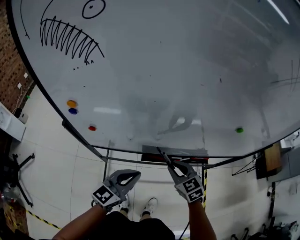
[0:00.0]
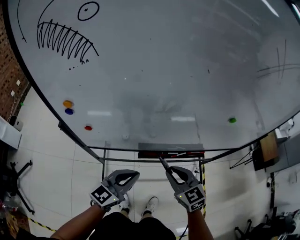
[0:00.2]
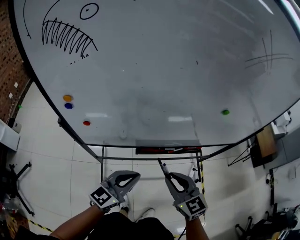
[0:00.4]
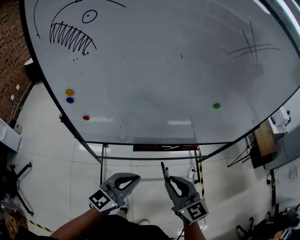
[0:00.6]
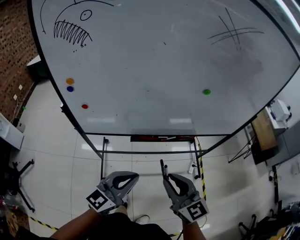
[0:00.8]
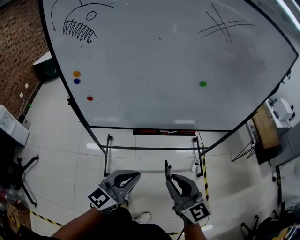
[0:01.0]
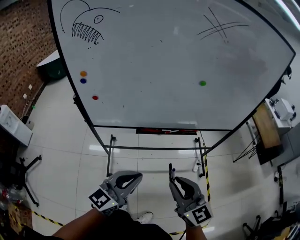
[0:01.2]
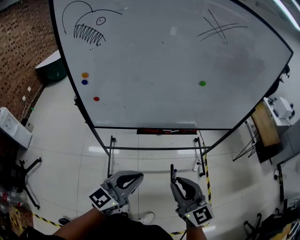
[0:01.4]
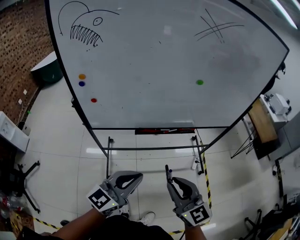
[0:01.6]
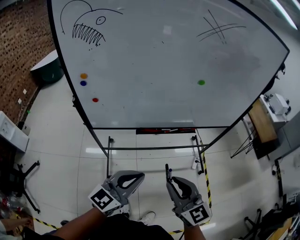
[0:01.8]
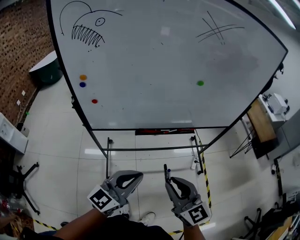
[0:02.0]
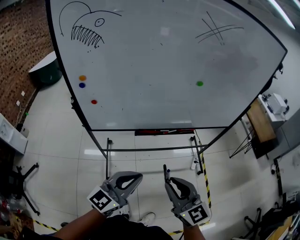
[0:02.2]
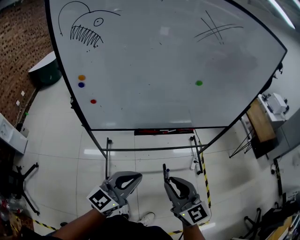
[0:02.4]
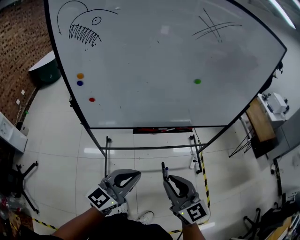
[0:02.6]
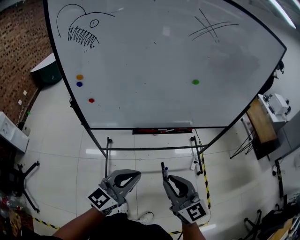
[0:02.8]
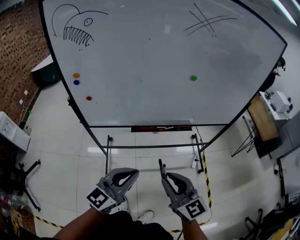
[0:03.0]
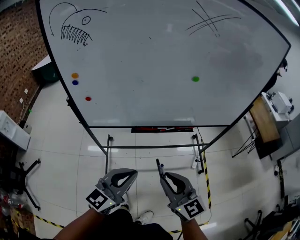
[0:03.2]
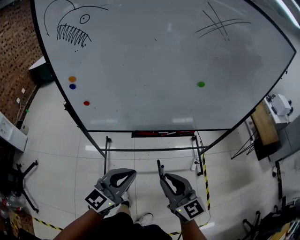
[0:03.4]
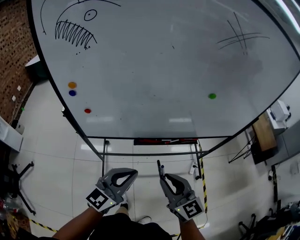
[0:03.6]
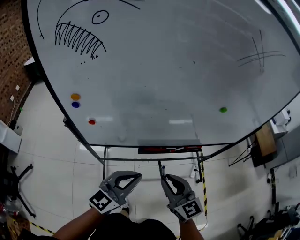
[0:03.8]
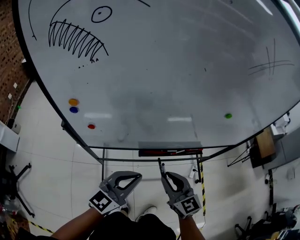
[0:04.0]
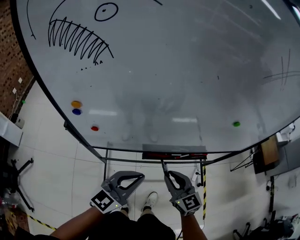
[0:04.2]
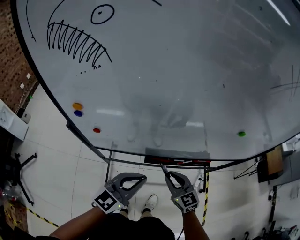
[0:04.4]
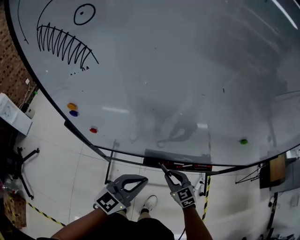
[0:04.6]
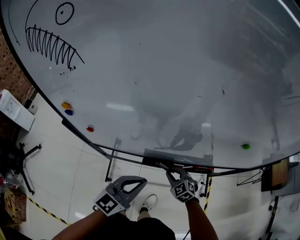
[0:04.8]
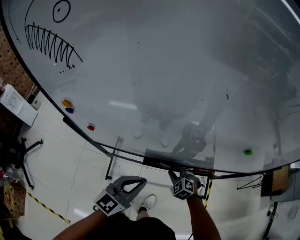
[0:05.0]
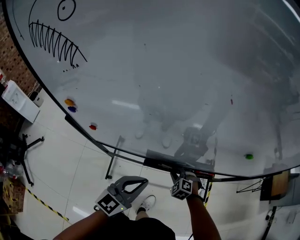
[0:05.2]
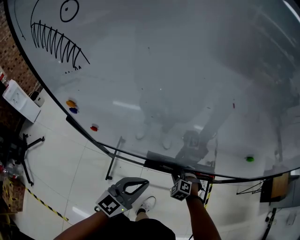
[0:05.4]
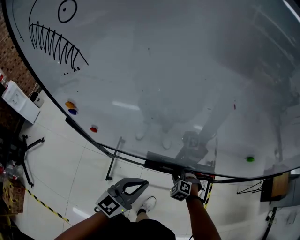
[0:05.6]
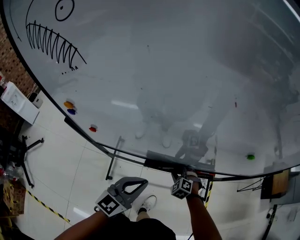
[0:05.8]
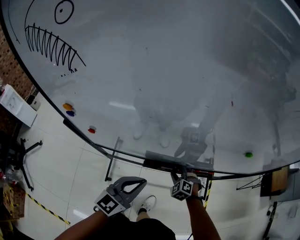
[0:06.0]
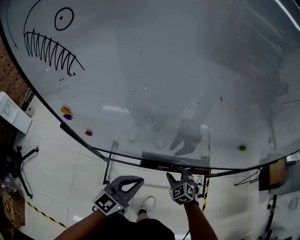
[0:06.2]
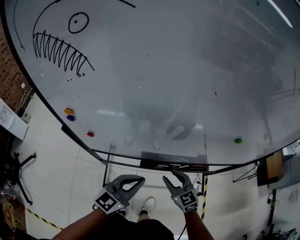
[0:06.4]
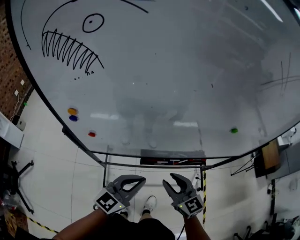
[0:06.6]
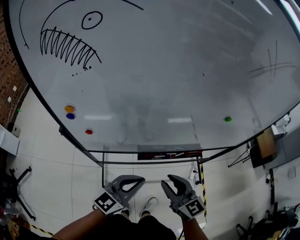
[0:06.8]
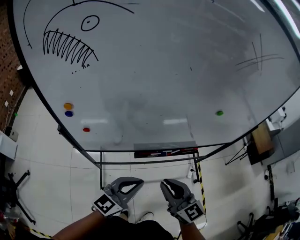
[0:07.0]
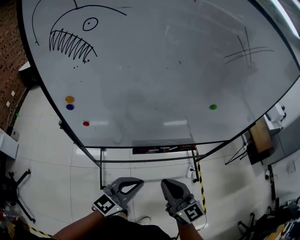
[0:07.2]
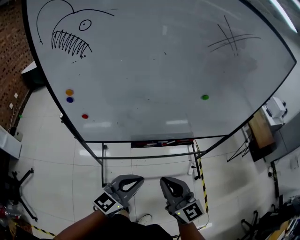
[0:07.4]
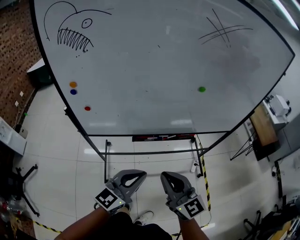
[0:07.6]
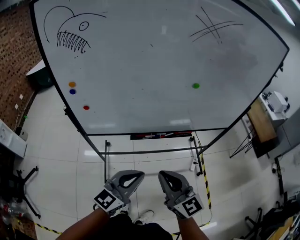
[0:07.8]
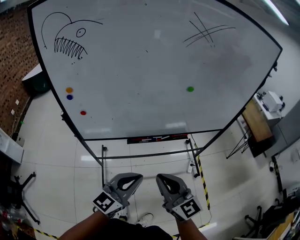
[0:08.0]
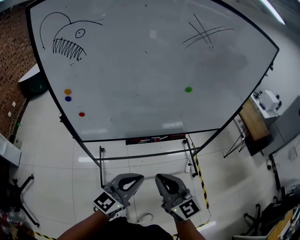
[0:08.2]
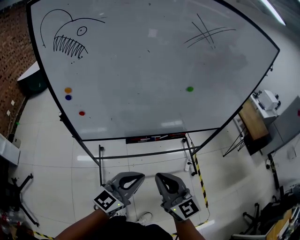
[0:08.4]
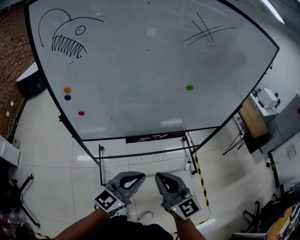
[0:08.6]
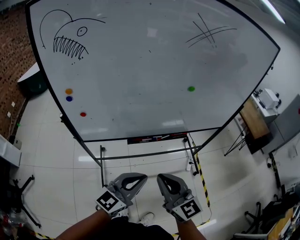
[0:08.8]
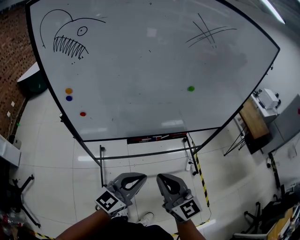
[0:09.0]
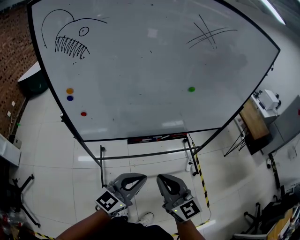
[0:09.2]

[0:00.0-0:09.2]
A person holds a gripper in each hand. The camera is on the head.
0:00.0 to 0:01.6: Both grippers move backward and upward, approximately 30 cm. The right gripper tips its fingers upward by approximately 30 degrees.
0:01.6 to 0:03.0: The grippers stay close to where they were, moving slightly.
0:03.0 to 0:04.6: The right gripper heads forward and downward, covering approximately 40 cm, and changes its angle by roughly 30 degrees. The left gripper goes approximately 25 cm forward.
0:04.6 to 0:06.2: The right gripper reaches some 10 cm downward, then returns, swivels roughly 20 degrees, and opens its fingers.
0:06.2 to 0:07.6: The right gripper is displaced backward and upward by about 40 cm, points its fingers approximately 40 degrees further upward, and closes its fingers, while the left gripper goes about 20 cm backward.
0:07.6 to 0:09.2: The grippers move only a little.

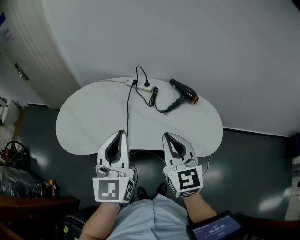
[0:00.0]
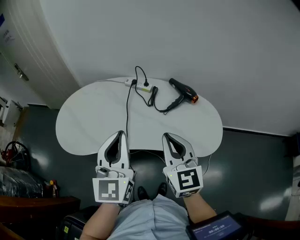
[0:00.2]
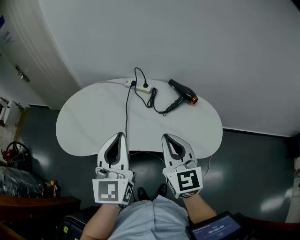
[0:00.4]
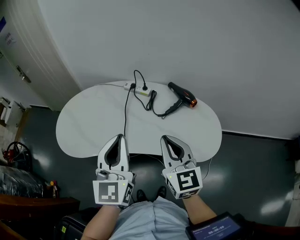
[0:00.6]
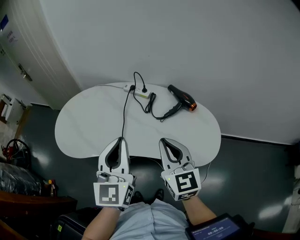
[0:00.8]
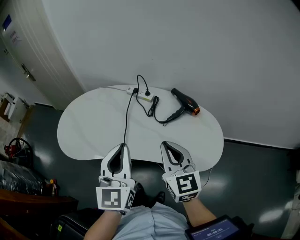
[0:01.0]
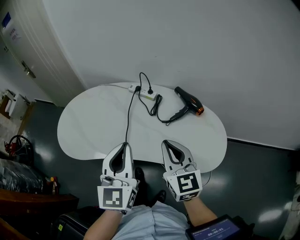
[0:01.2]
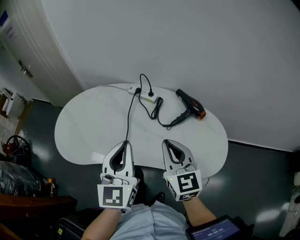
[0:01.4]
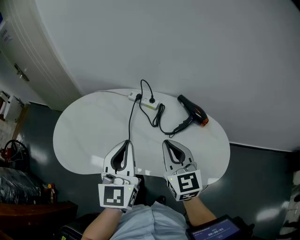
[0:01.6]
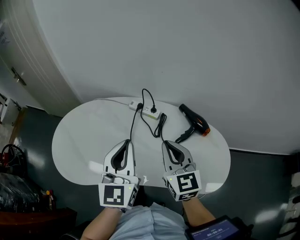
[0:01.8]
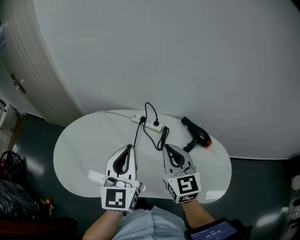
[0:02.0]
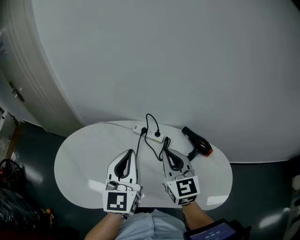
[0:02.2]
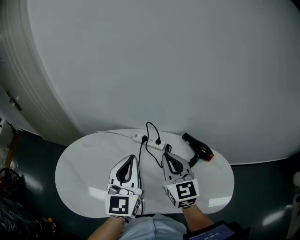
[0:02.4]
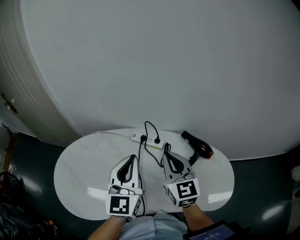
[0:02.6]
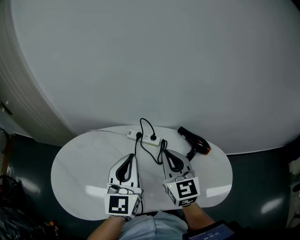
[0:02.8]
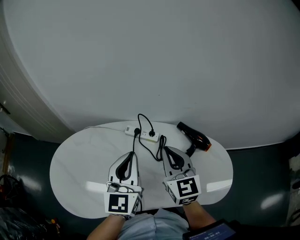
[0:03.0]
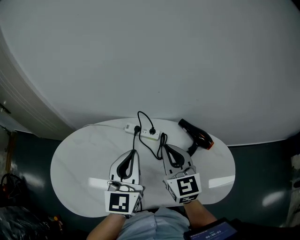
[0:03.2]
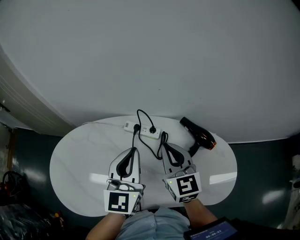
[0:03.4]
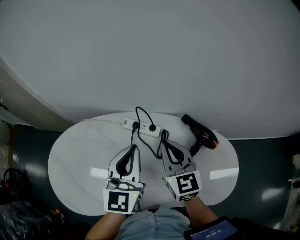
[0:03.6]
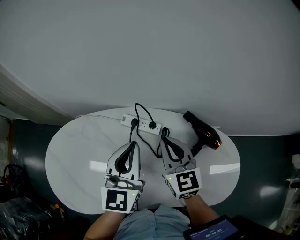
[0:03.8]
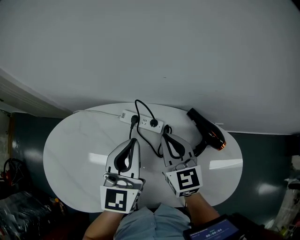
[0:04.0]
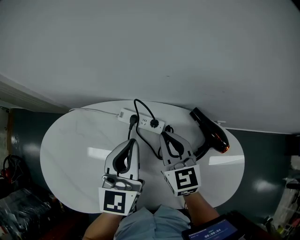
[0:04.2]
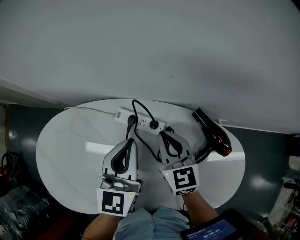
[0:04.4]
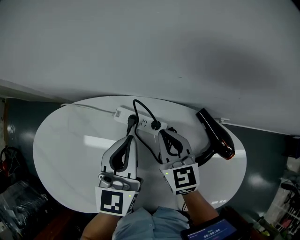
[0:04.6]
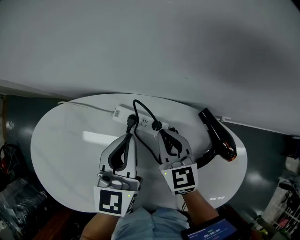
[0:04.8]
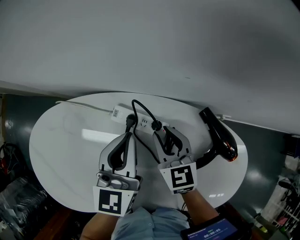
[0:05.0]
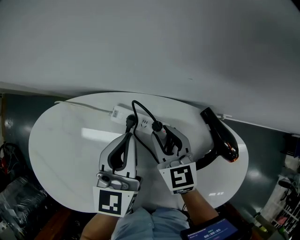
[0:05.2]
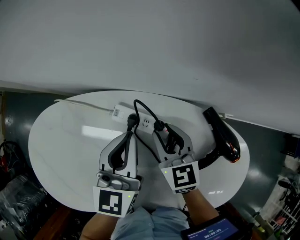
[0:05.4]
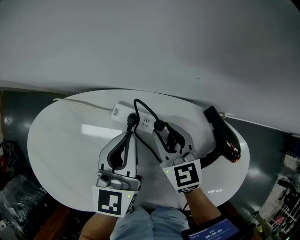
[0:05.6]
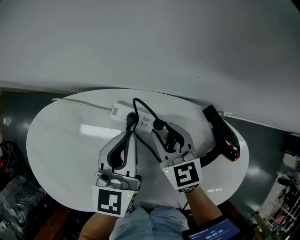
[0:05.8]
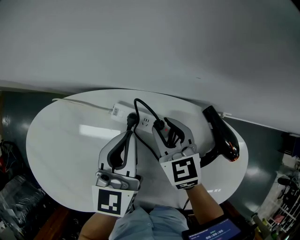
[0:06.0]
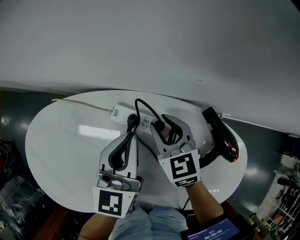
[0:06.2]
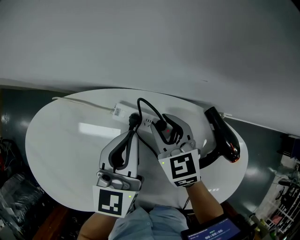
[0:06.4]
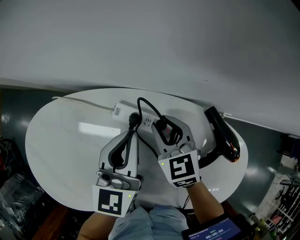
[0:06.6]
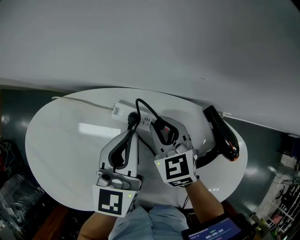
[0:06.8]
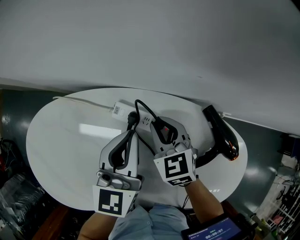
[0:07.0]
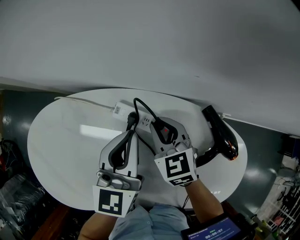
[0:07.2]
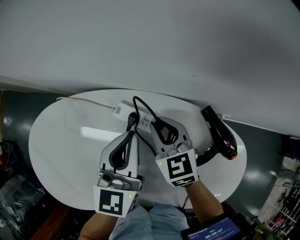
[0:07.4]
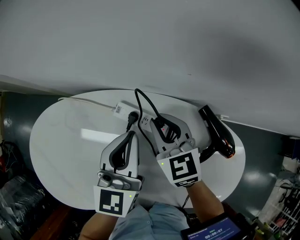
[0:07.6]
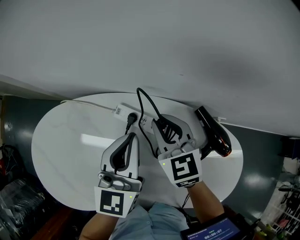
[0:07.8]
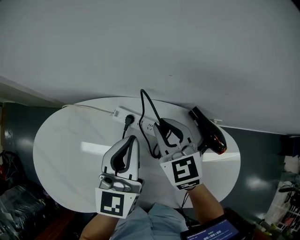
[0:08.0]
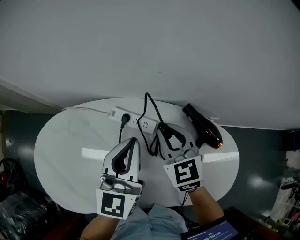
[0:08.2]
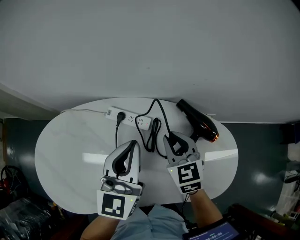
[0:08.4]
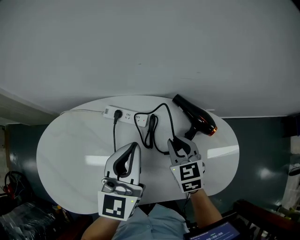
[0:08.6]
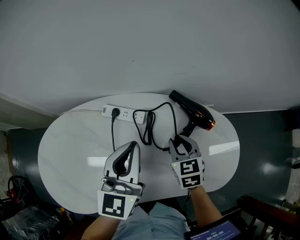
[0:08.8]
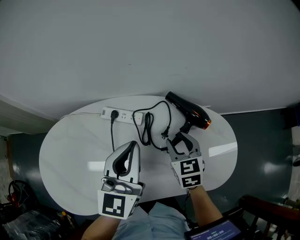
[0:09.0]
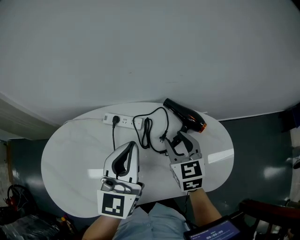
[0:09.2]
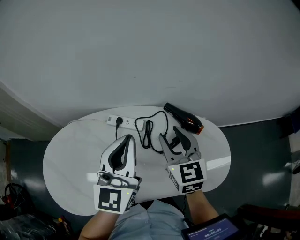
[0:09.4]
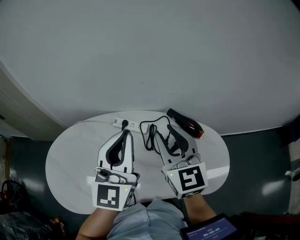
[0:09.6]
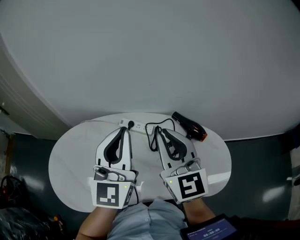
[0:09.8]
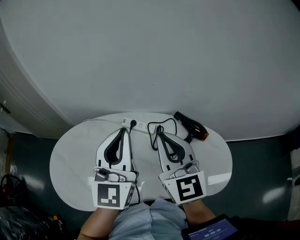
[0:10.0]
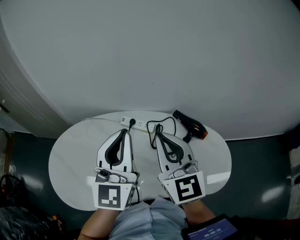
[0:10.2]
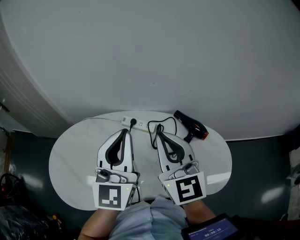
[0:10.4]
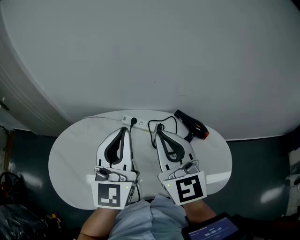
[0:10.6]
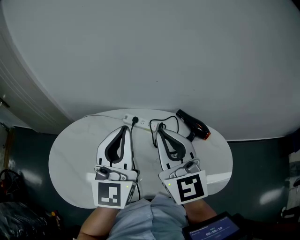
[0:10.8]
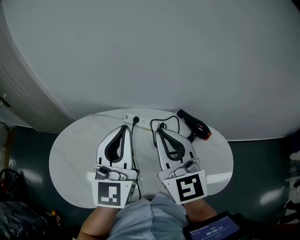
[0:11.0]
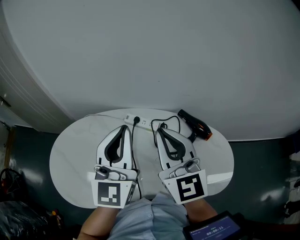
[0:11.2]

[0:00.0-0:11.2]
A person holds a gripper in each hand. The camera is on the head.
0:00.0 to 0:01.6: Both grippers travel together forward, roughly 10 cm.
0:01.6 to 0:03.2: Both grippers travel together forward, some 15 cm.
0:03.2 to 0:04.8: The left gripper shifts about 20 cm forward and downward, and changes its angle by approximately 20 degrees; the right gripper is displaced downward and forward by approximately 20 cm.
0:04.8 to 0:06.4: The right gripper opens.
0:06.4 to 0:08.0: The two grippers go about 10 cm upward.
0:08.0 to 0:09.6: The grippers both shift upward and backward by about 20 cm. The right gripper rotates roughly 30 degrees. Meanwhile the left gripper turns by about 30 degrees.
0:09.6 to 0:11.2: The right gripper heads to the left and upward, covering roughly 10 cm, and closes up. The left gripper heads to the left, covering some 5 cm.

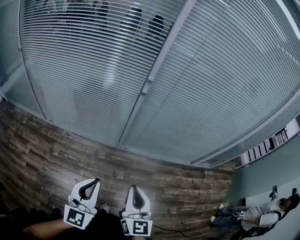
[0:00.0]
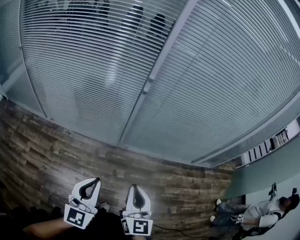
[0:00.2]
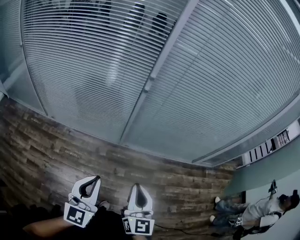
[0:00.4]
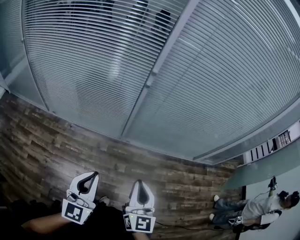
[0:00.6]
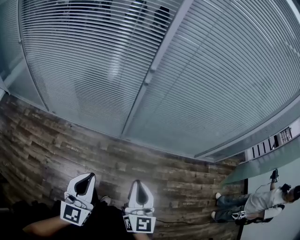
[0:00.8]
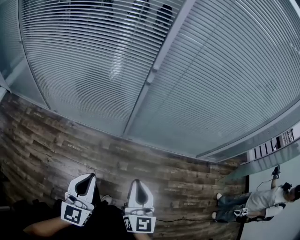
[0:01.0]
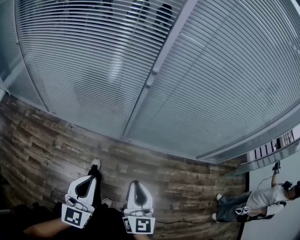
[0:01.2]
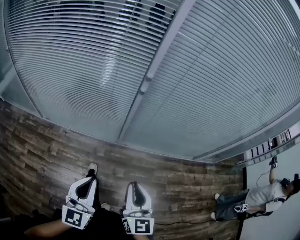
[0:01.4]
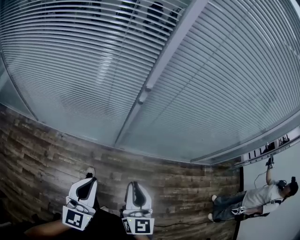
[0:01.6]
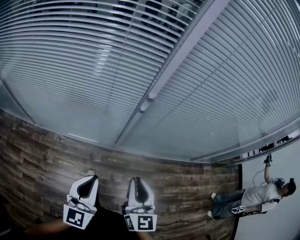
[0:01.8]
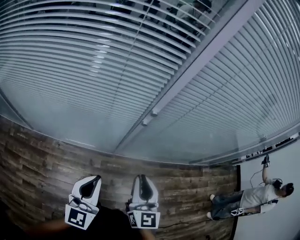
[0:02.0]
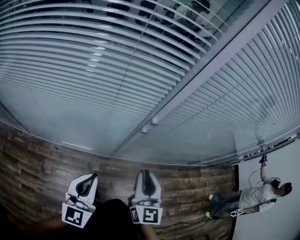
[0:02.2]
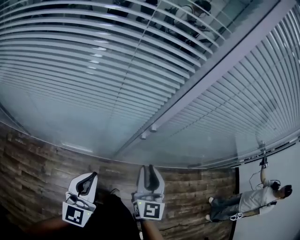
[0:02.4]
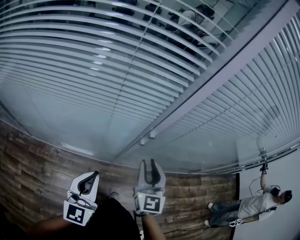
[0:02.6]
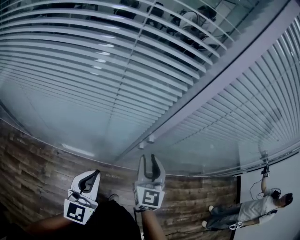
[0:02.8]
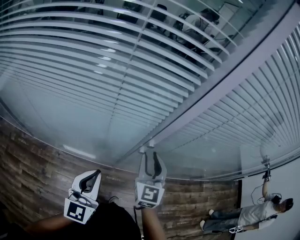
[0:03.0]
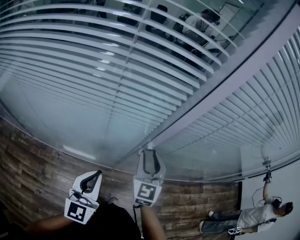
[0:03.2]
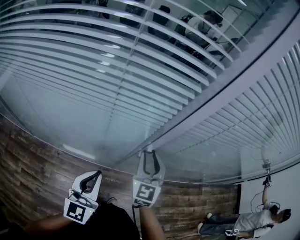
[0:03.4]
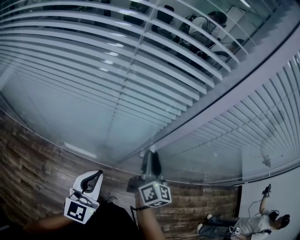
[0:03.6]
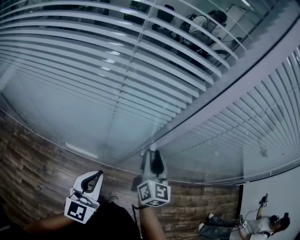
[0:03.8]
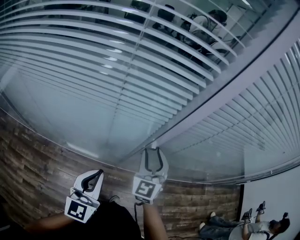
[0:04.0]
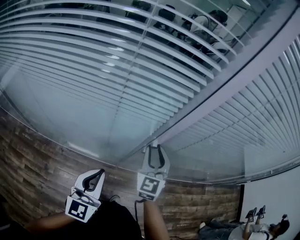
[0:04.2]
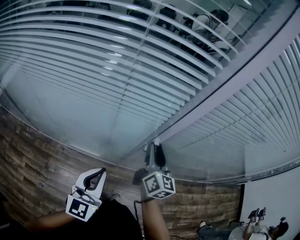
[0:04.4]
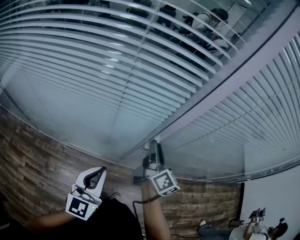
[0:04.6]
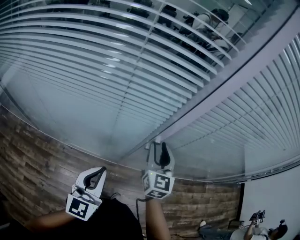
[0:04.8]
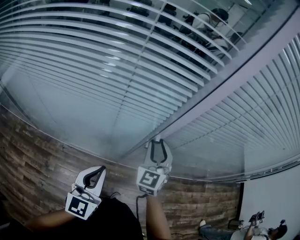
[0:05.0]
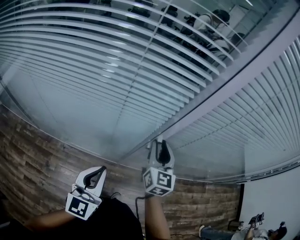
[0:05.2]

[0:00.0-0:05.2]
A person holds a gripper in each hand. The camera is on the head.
0:00.0 to 0:01.8: The two grippers go roughly 20 cm forward.
0:01.8 to 0:03.4: The right gripper shifts roughly 25 cm forward, and turns by approximately 20 degrees. The left gripper goes roughly 15 cm forward.
